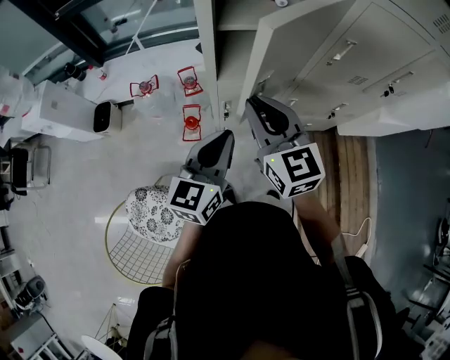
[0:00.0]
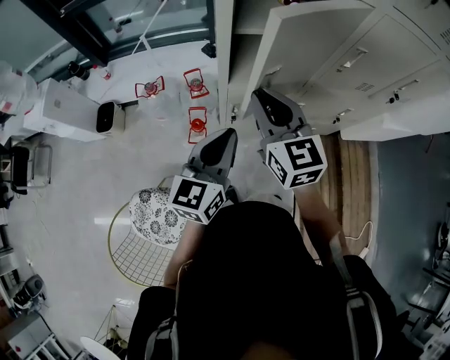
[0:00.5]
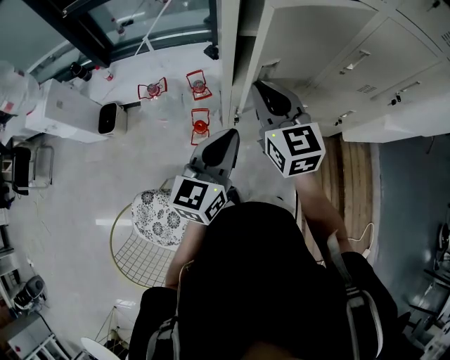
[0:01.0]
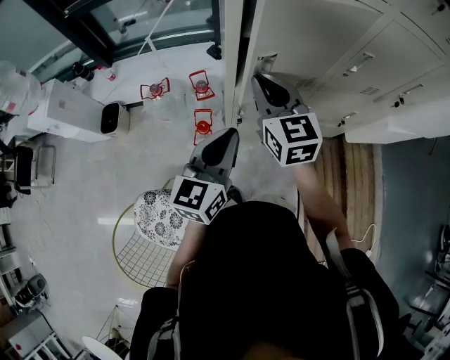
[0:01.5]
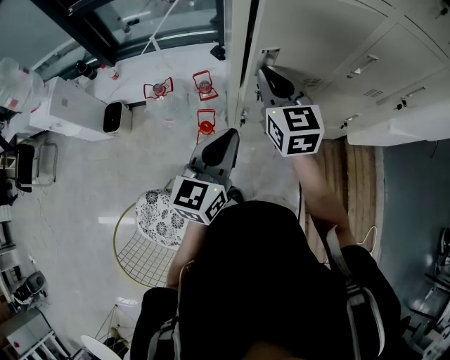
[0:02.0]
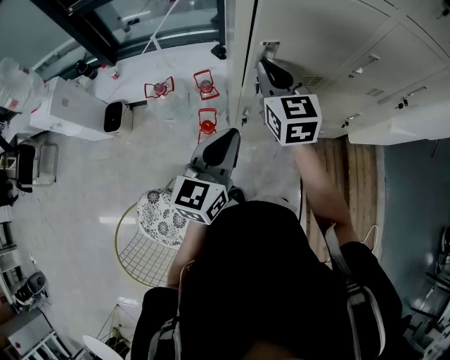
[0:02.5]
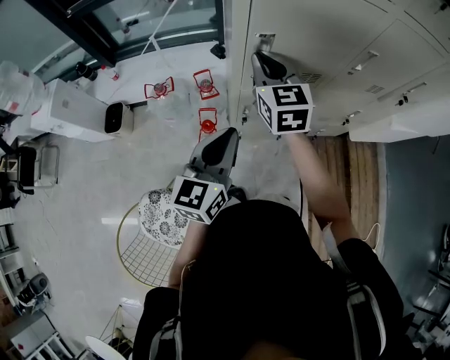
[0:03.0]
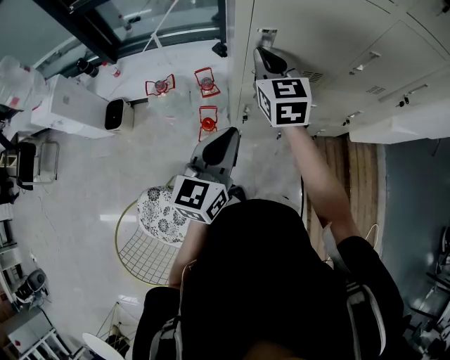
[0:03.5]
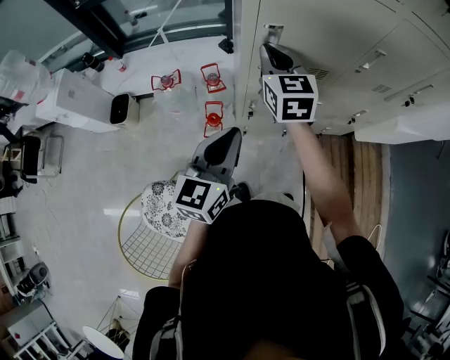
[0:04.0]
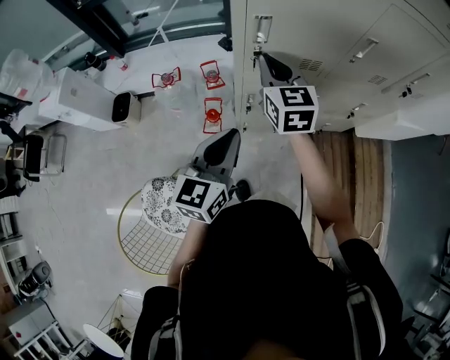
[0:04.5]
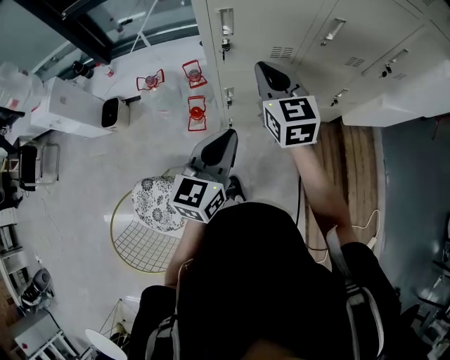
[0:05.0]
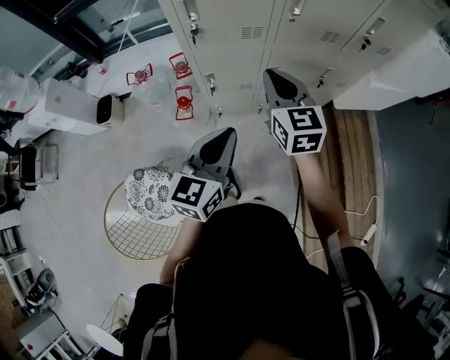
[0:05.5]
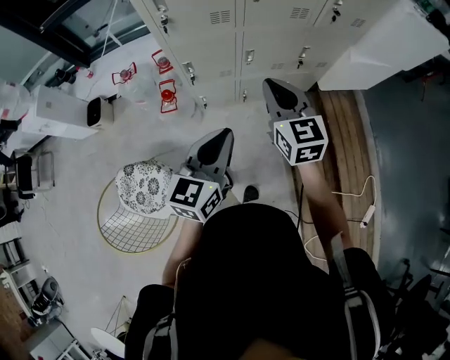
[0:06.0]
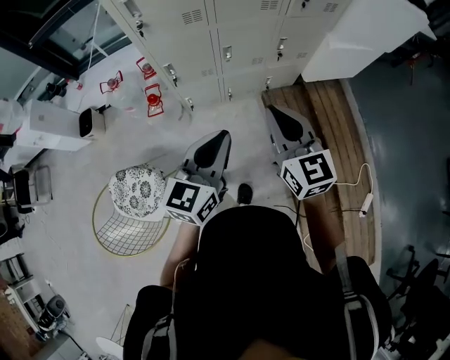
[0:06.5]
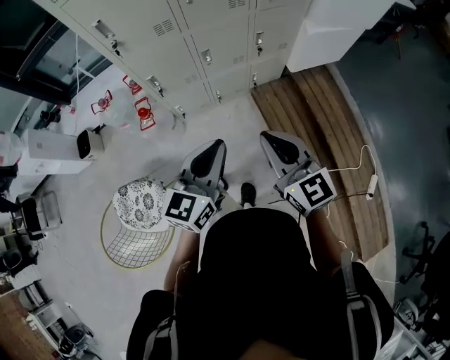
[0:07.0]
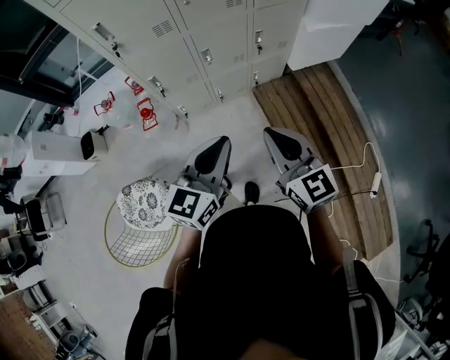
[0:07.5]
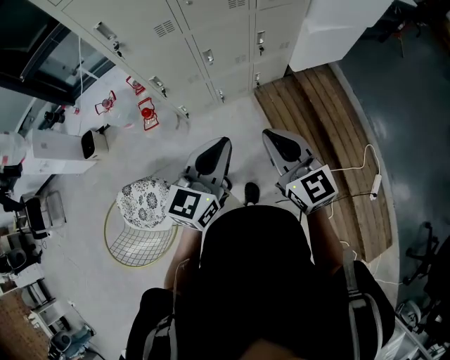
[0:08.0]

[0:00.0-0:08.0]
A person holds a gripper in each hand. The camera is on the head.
0:00.0 to 0:02.0: The left gripper heads to the left, covering approximately 5 cm. The right gripper goes roughly 10 cm forward.
0:02.0 to 0:04.0: The grippers move only a little.
0:04.0 to 0:06.0: Both grippers travel together to the right and backward, about 35 cm.
0:06.0 to 0:08.0: The right gripper is displaced backward and to the right by approximately 20 cm, while the left gripper moves to the right and backward, some 15 cm.

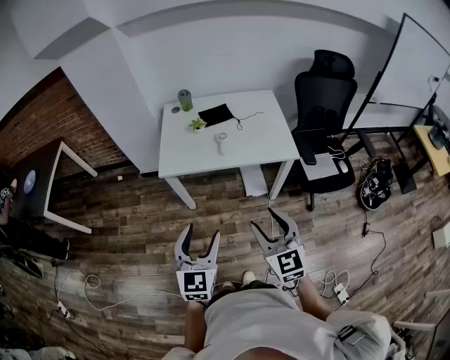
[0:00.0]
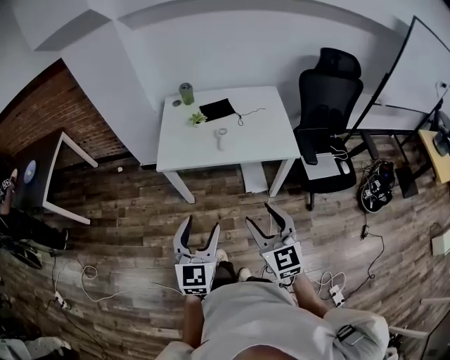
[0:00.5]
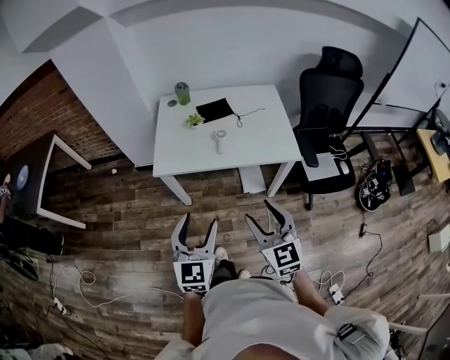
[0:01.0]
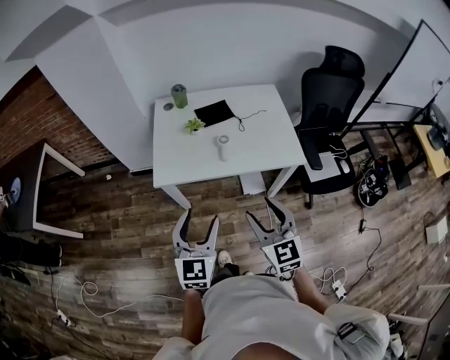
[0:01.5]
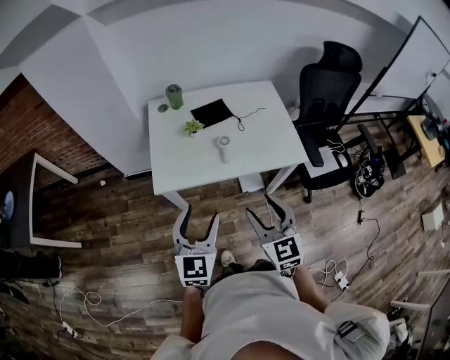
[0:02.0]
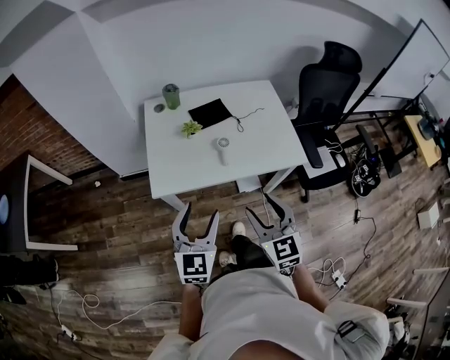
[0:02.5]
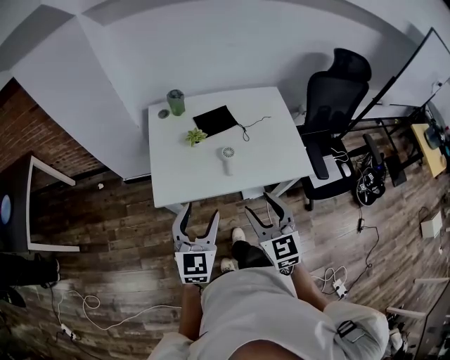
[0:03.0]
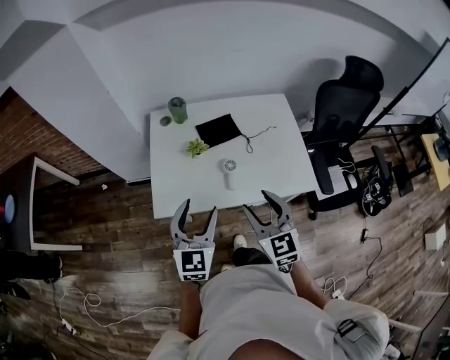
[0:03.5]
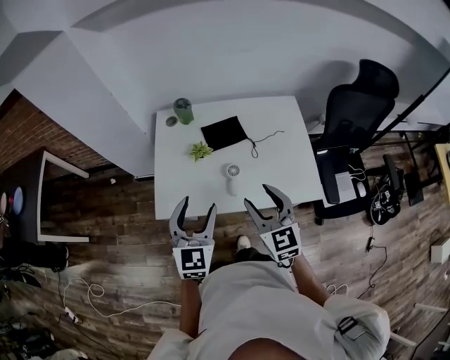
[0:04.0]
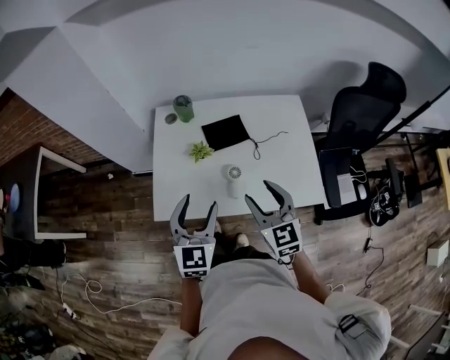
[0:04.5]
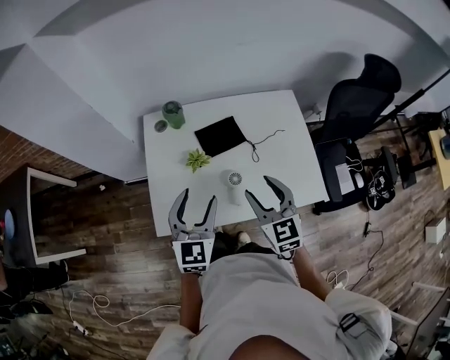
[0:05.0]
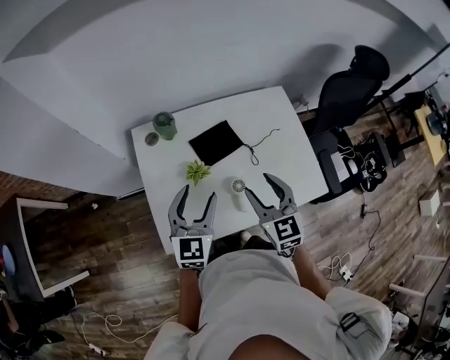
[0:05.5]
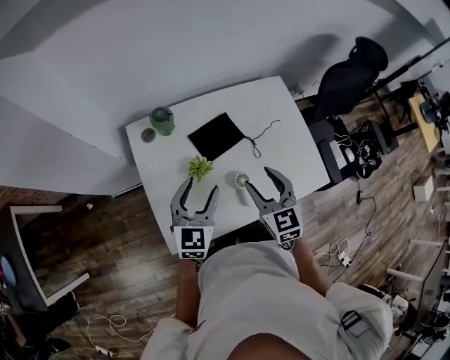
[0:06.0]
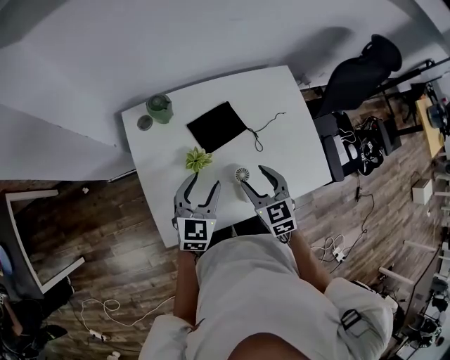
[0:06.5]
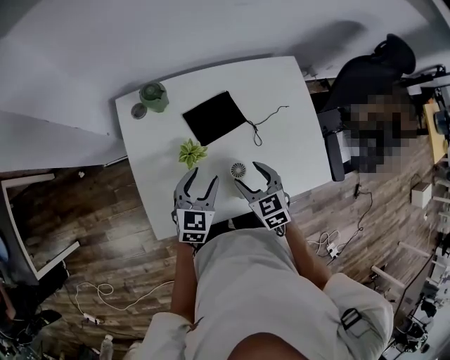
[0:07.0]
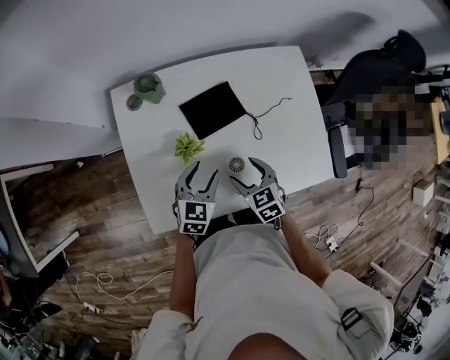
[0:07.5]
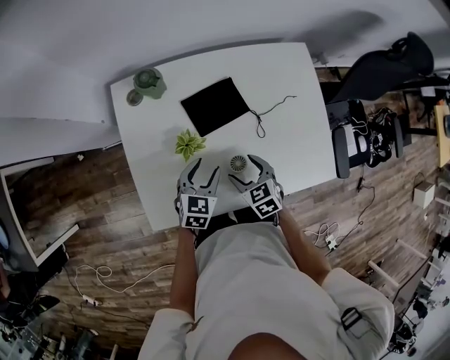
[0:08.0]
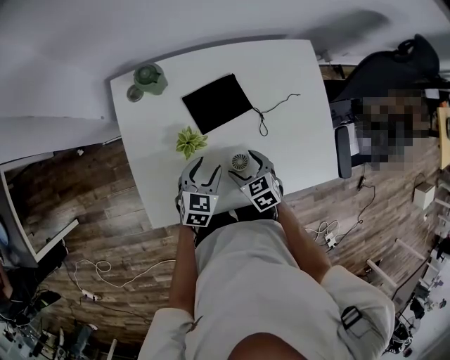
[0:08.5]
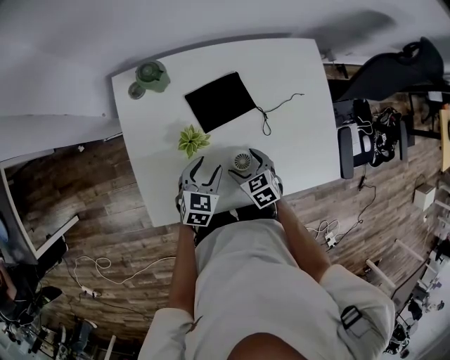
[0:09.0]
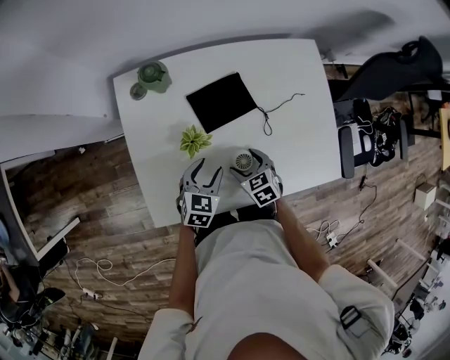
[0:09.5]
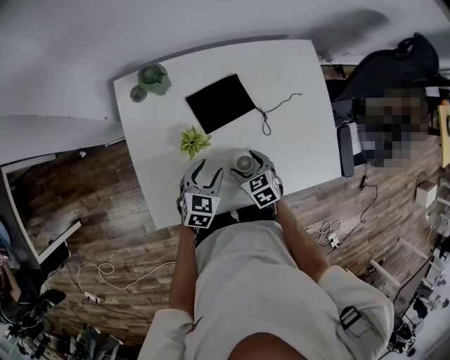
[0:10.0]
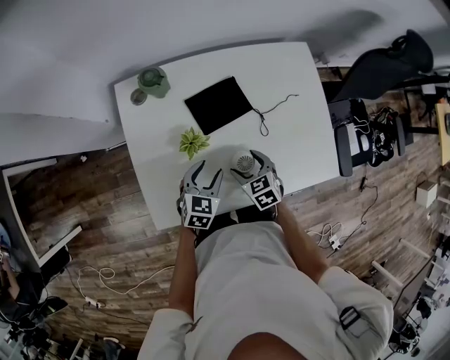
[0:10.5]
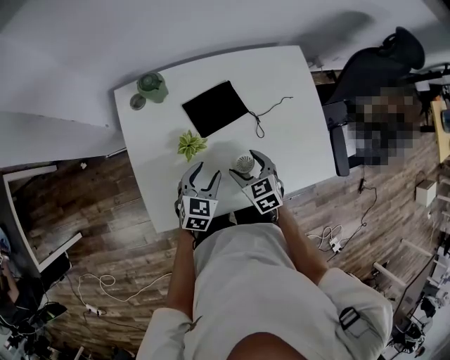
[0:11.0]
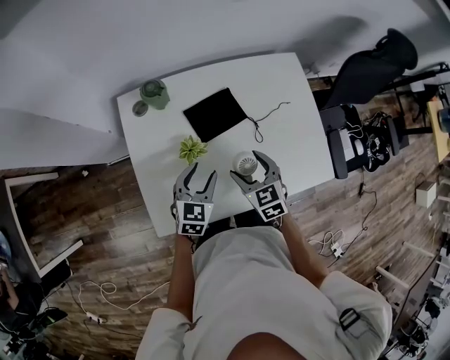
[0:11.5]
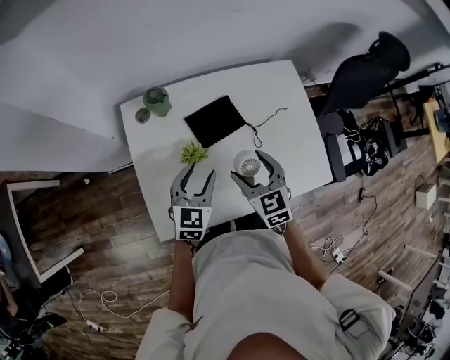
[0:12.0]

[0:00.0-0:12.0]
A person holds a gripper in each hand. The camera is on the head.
0:00.0 to 0:02.0: The grippers both shift forward by approximately 20 cm.
0:02.0 to 0:04.0: The two grippers go approximately 20 cm forward.
0:04.0 to 0:06.0: The two grippers go about 20 cm forward. The left gripper swivels about 20 degrees.
0:06.0 to 0:08.0: The grippers both shift downward by roughly 20 cm. The left gripper changes its angle by some 20 degrees. Meanwhile the right gripper swivels about 30 degrees.
0:08.0 to 0:10.0: The grippers move only a little.
0:10.0 to 0:12.0: The grippers both shift upward by some 15 cm. The right gripper rotates about 30 degrees.

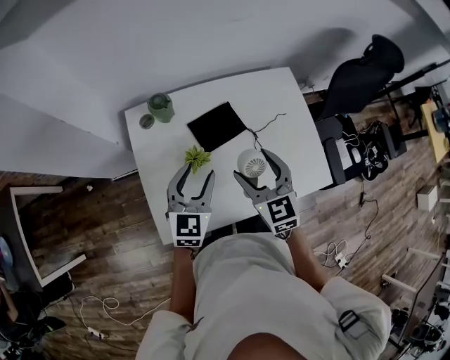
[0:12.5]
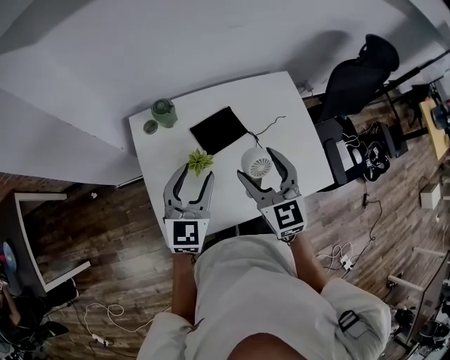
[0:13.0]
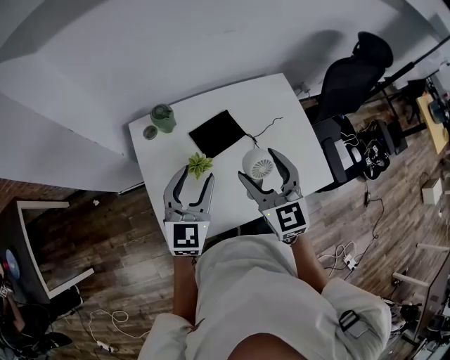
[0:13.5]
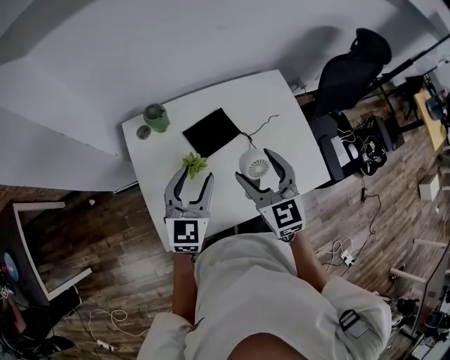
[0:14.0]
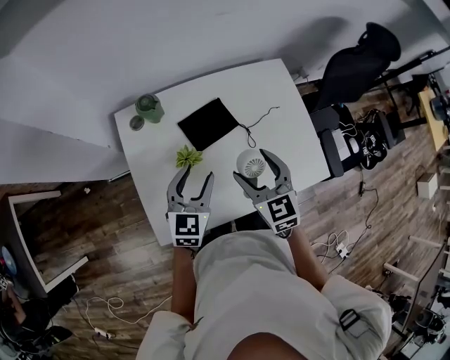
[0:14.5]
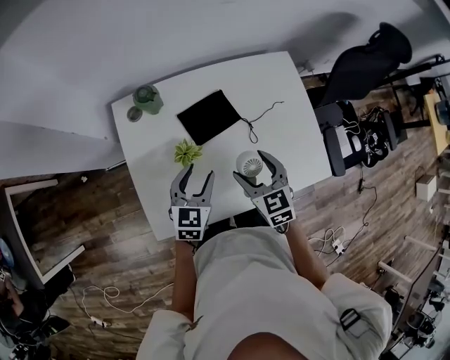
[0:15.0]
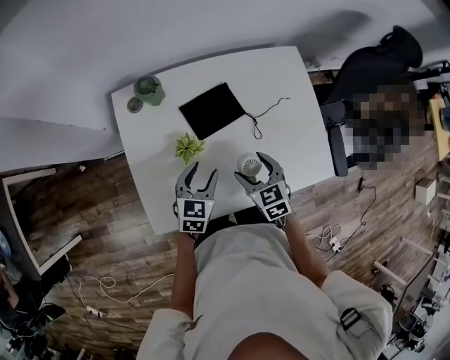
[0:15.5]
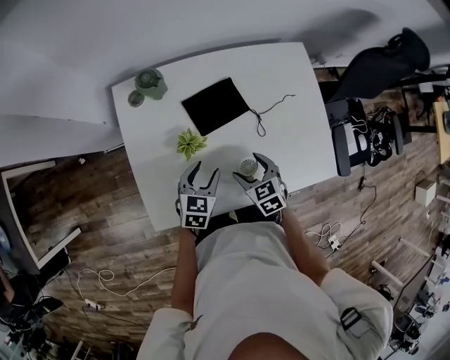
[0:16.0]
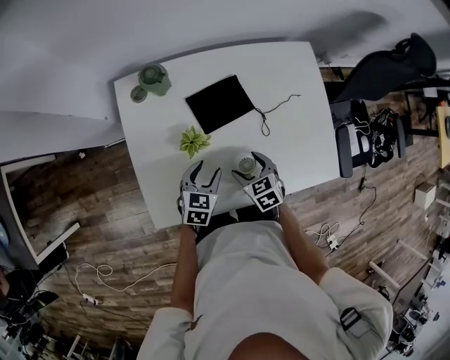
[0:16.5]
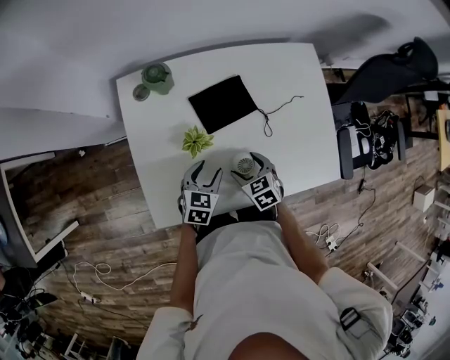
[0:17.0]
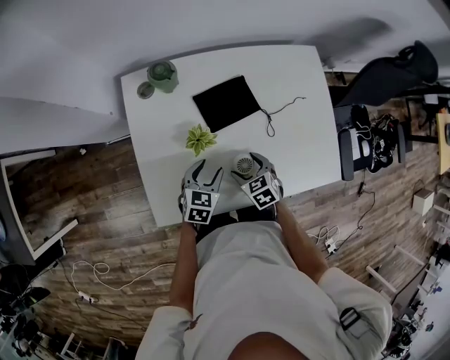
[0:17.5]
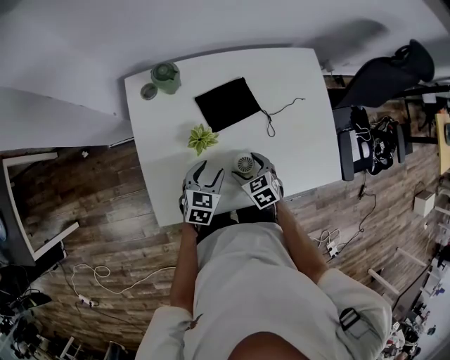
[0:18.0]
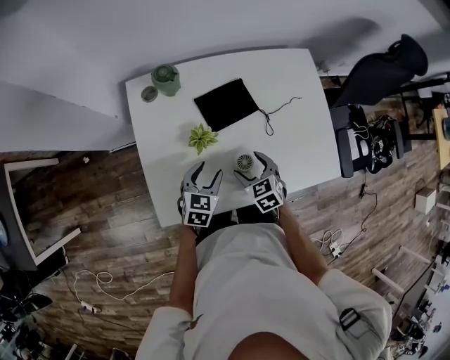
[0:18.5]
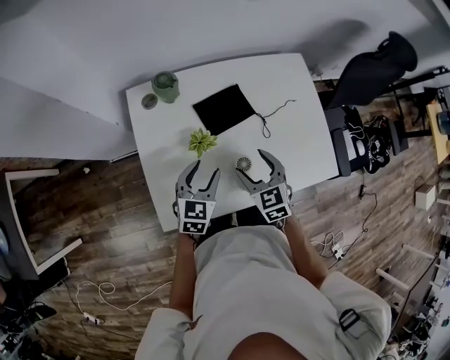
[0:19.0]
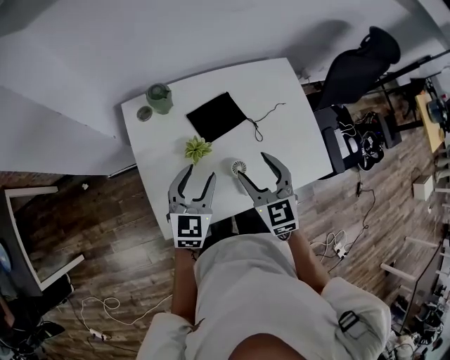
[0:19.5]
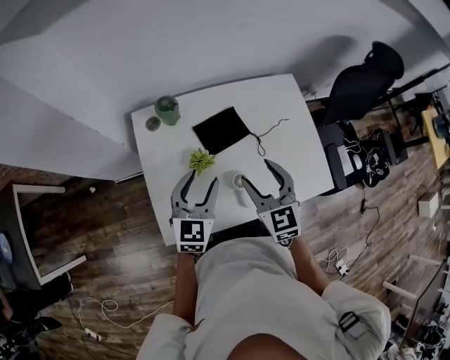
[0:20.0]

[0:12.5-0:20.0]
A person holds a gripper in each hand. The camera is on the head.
0:12.5 to 0:14.5: The right gripper moves roughly 5 cm upward and comes back. The left gripper reaches some 5 cm upward, then returns.
0:14.5 to 0:16.5: The two grippers go approximately 20 cm downward. The left gripper changes its angle by about 20 degrees; the right gripper turns by some 30 degrees.
0:16.5 to 0:18.0: The grippers move only a little.
0:18.0 to 0:20.0: The two grippers go some 25 cm upward. The left gripper changes its angle by about 30 degrees. Meanwhile the right gripper points its fingers approximately 30 degrees further upward.
